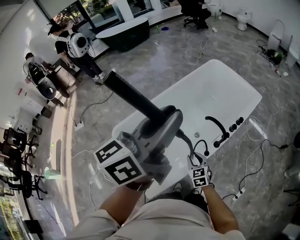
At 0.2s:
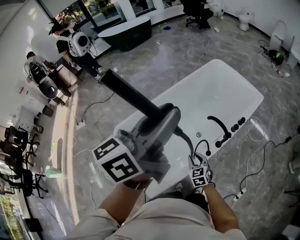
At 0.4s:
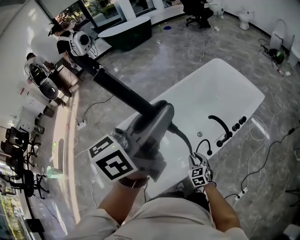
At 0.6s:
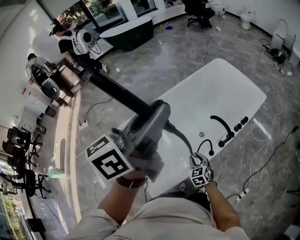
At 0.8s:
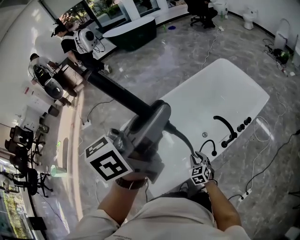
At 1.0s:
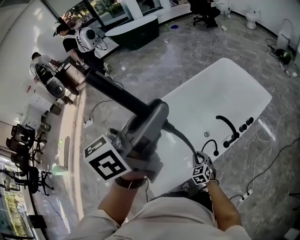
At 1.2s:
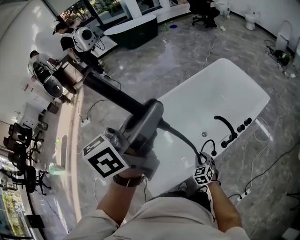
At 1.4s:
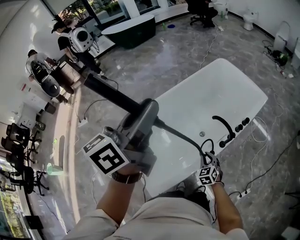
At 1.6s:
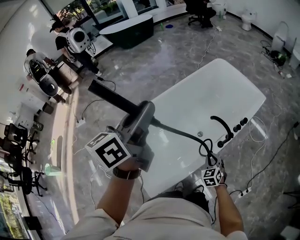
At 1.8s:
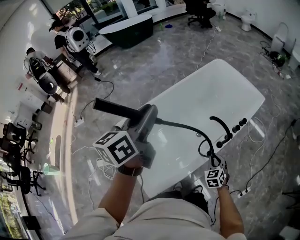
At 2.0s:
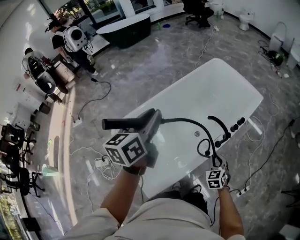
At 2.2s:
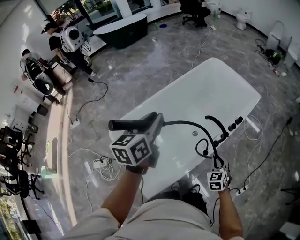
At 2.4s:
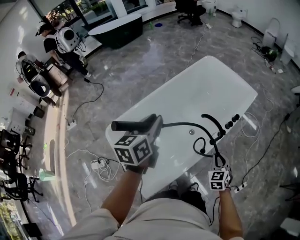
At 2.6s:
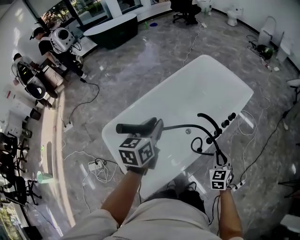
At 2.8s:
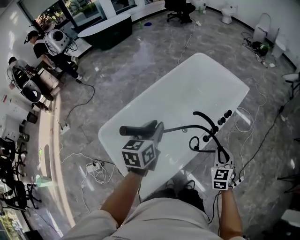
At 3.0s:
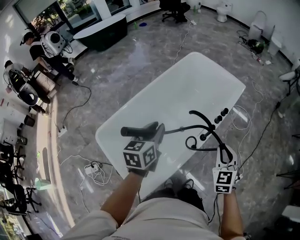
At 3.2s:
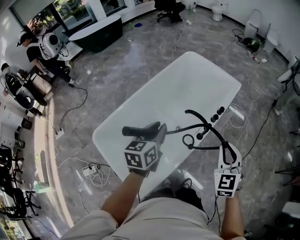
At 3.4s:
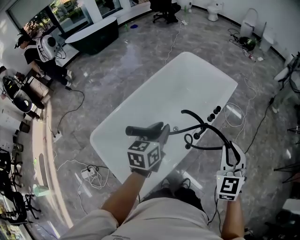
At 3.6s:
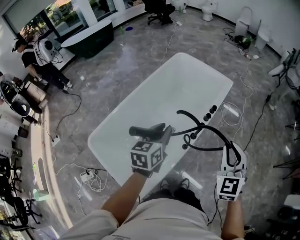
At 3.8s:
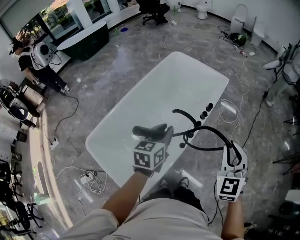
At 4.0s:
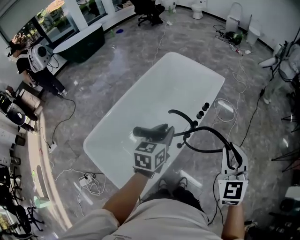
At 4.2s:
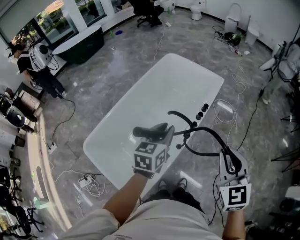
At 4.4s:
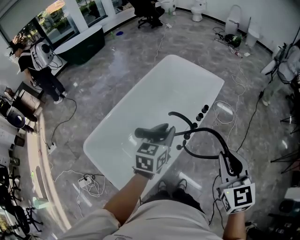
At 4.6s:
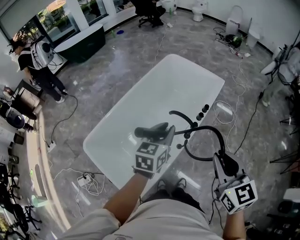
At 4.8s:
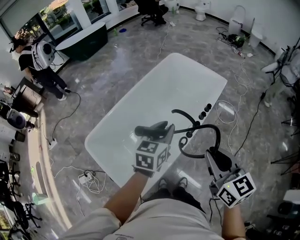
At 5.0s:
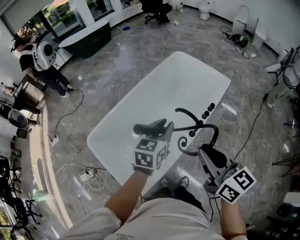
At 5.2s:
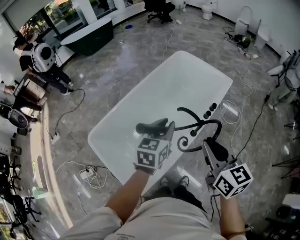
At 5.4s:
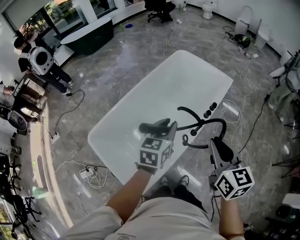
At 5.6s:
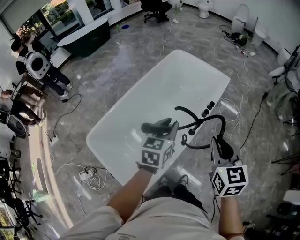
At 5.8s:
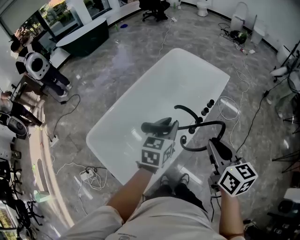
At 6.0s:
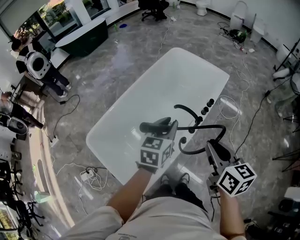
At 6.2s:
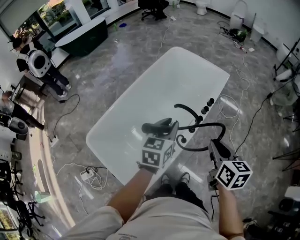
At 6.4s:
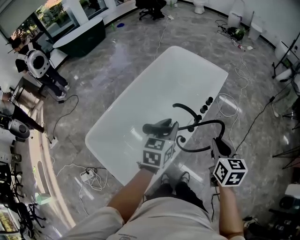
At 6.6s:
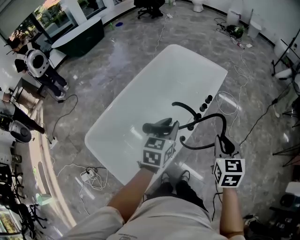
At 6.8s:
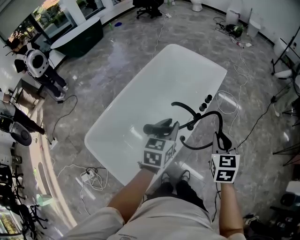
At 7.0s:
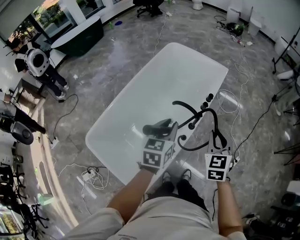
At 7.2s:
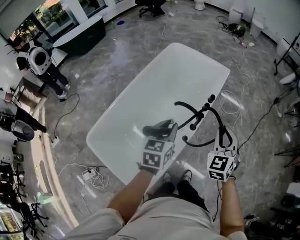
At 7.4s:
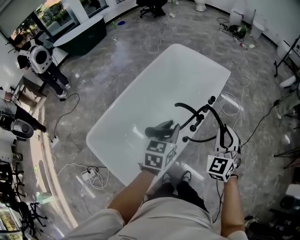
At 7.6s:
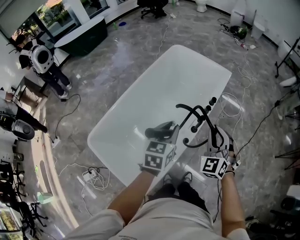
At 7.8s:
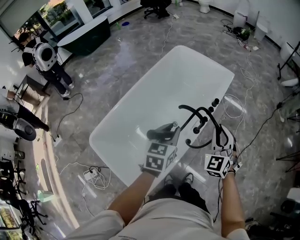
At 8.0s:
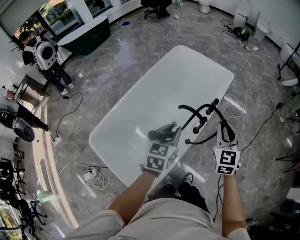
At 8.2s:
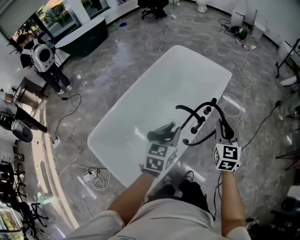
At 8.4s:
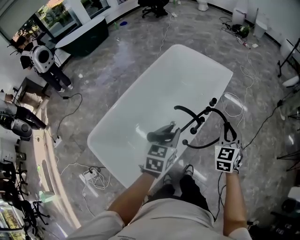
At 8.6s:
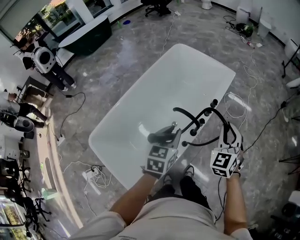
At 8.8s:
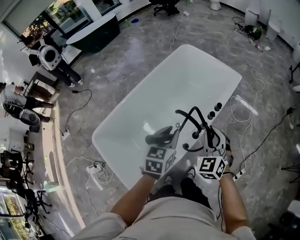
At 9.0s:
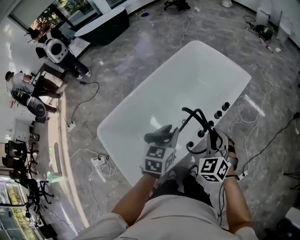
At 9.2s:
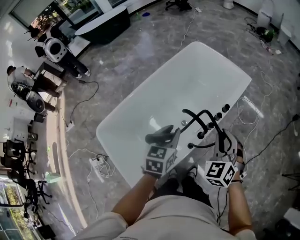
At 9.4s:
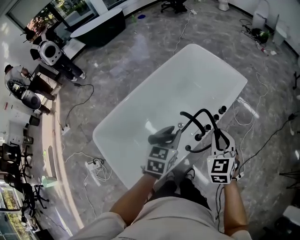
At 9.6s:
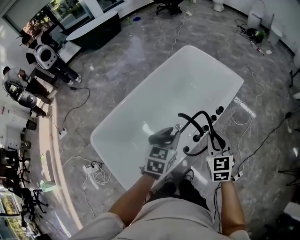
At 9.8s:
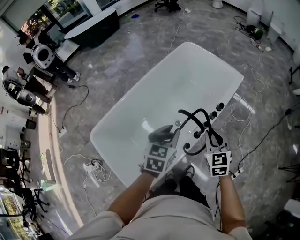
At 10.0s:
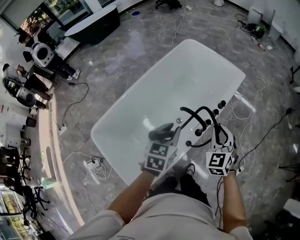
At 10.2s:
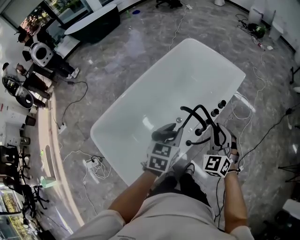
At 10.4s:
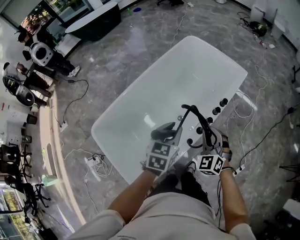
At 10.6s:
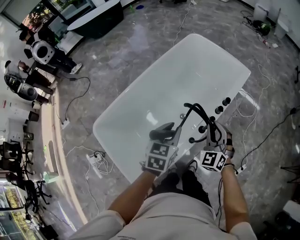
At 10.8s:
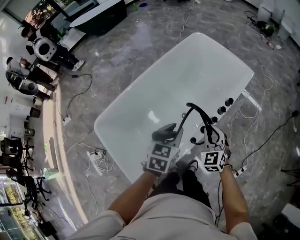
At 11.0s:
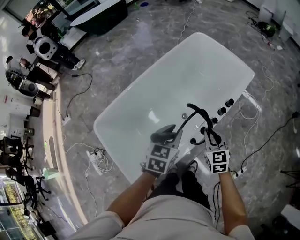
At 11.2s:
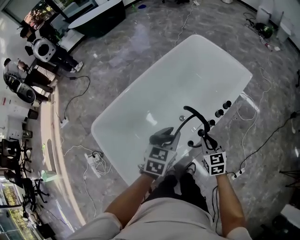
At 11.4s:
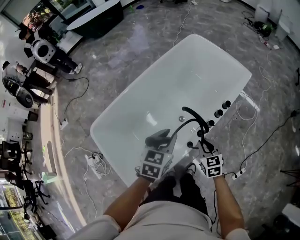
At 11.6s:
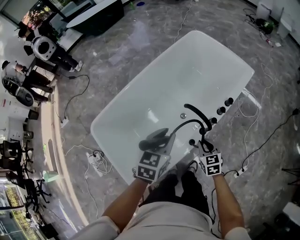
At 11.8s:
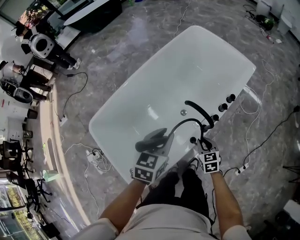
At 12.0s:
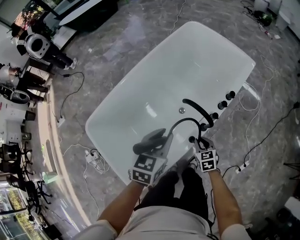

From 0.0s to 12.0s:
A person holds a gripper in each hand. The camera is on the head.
From 0.0s to 1.6s: The right gripper moves to the right, some 5 cm, while the left gripper shifts some 10 cm to the left and downward.
From 1.6s to 3.0s: The right gripper is displaced upward and to the right by about 20 cm, and turns by roughly 20 degrees, while the left gripper heads downward and to the right, covering approximately 20 cm, and rotates approximately 30 degrees.
From 3.0s to 4.4s: The left gripper moves to the right, roughly 15 cm; the right gripper moves upward and backward, about 15 cm.
From 4.4s to 6.0s: The right gripper heads to the left, covering roughly 5 cm, and turns by about 30 degrees.
From 6.0s to 7.6s: The right gripper goes about 10 cm downward and forward, and rotates around the line of its fingers by some 60 degrees, counterclockwise from behind.
From 7.6s to 9.0s: The right gripper shifts approximately 5 cm forward, and travels to the right and back again, about 10 cm each way.
From 9.0s to 10.4s: The right gripper goes some 5 cm downward.
From 10.4s to 12.0s: The right gripper goes about 25 cm downward, and changes its angle by some 50 degrees. Meanwhile the left gripper shifts approximately 5 cm downward.

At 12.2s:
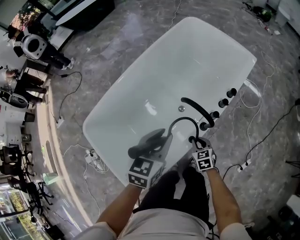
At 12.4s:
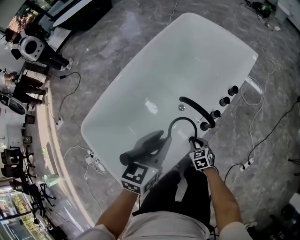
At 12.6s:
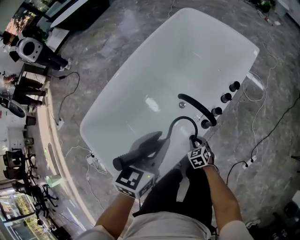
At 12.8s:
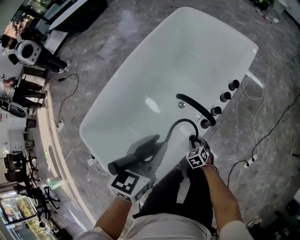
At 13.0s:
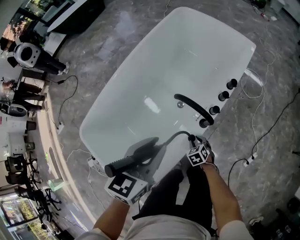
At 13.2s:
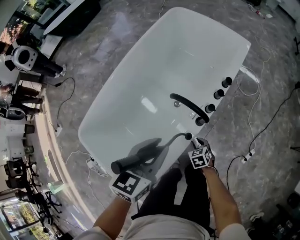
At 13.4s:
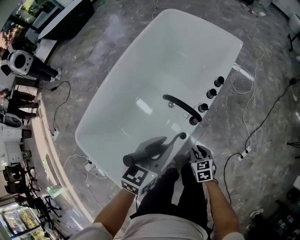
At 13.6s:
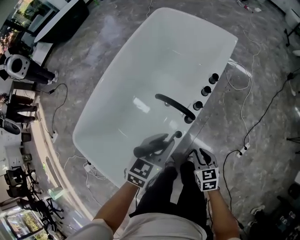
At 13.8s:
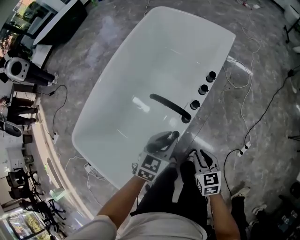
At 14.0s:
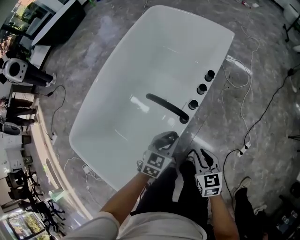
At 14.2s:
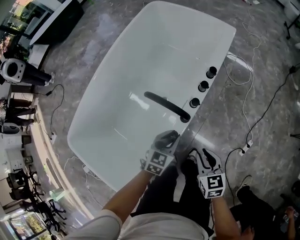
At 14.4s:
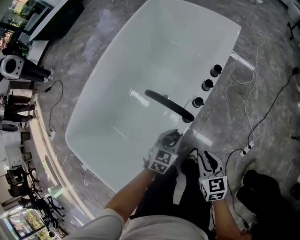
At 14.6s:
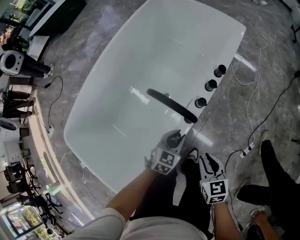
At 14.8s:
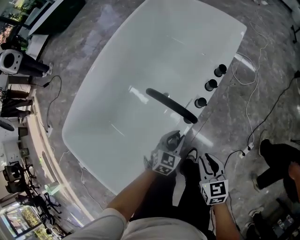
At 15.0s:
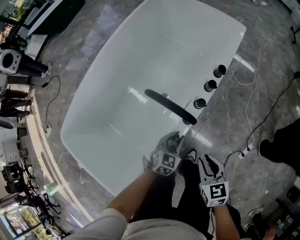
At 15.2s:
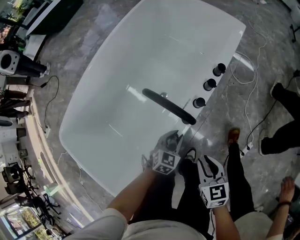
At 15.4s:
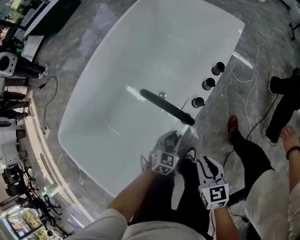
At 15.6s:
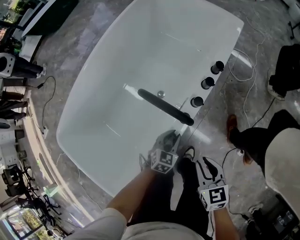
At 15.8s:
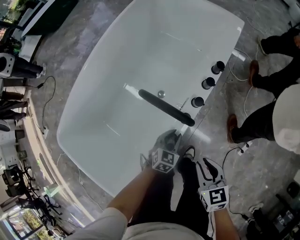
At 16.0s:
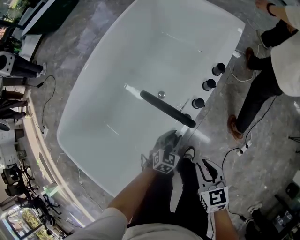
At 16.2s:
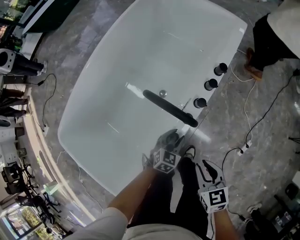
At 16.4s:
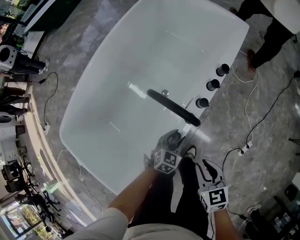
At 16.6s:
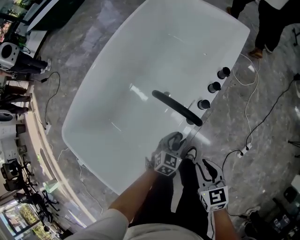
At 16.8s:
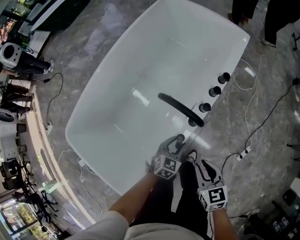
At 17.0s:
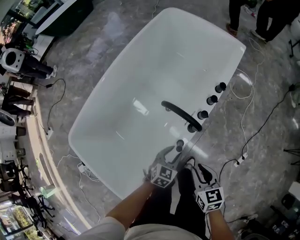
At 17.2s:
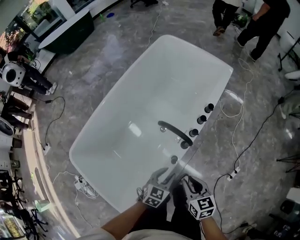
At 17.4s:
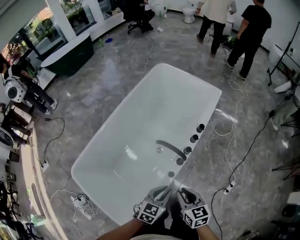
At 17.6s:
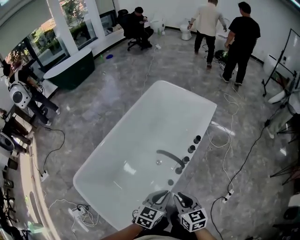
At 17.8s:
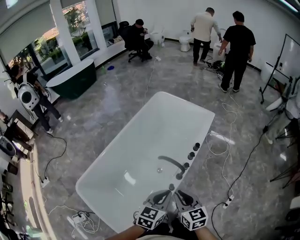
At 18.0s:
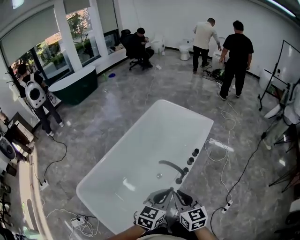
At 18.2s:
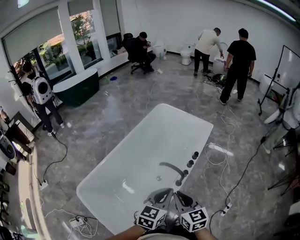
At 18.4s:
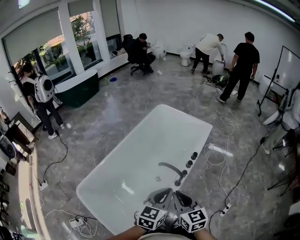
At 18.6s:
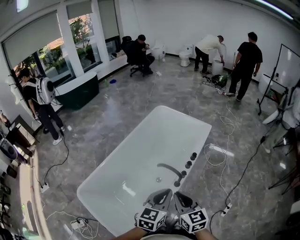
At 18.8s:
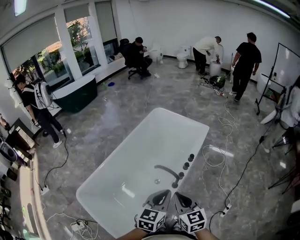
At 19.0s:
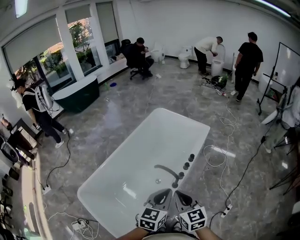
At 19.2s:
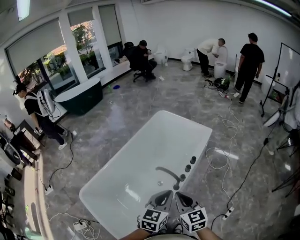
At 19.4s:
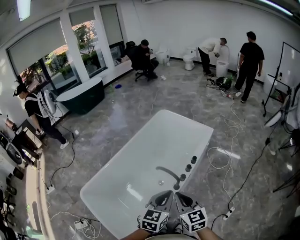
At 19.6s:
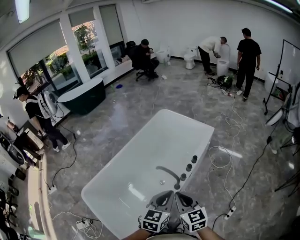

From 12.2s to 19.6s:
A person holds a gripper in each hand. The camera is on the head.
From 12.2s to 13.6s: The right gripper moves to the right, backward and upward, approximately 15 cm; the left gripper goes roughly 10 cm to the right, and changes its angle by approximately 20 degrees.
From 13.6s to 15.2s: The left gripper moves downward, some 30 cm.
From 15.2s to 16.6s: The grippers make only small movements.
From 16.6s to 18.2s: The left gripper shifts about 40 cm upward, swivels about 30 degrees, and closes its fingers; the right gripper heads upward, covering some 30 cm, and turns by approximately 20 degrees.
From 18.2s to 19.6s: The grippers both shift to the right by approximately 5 cm.

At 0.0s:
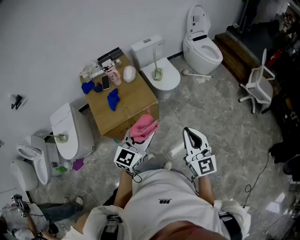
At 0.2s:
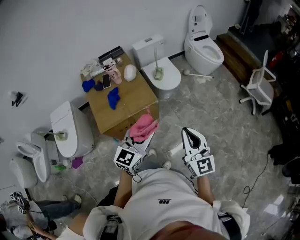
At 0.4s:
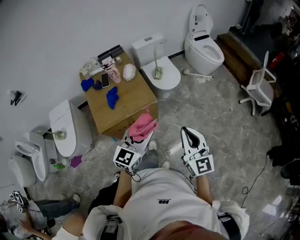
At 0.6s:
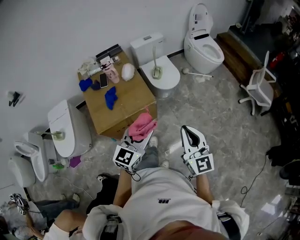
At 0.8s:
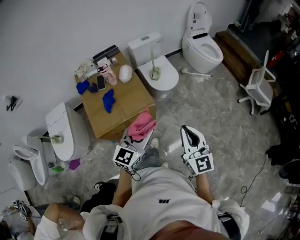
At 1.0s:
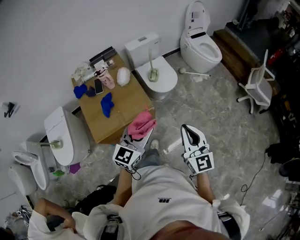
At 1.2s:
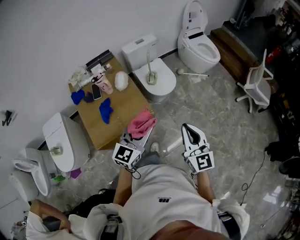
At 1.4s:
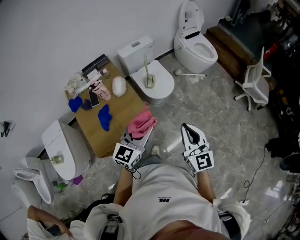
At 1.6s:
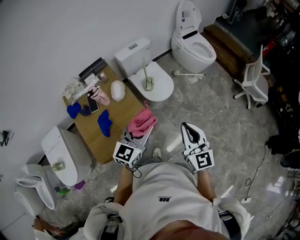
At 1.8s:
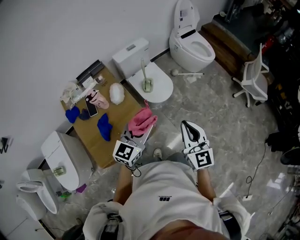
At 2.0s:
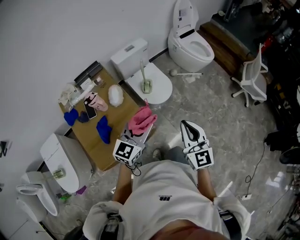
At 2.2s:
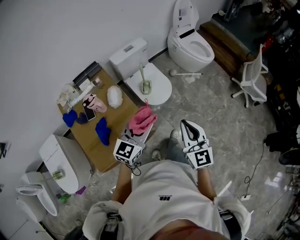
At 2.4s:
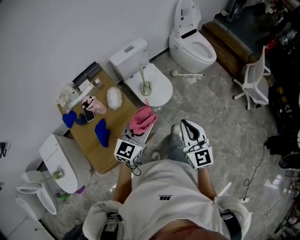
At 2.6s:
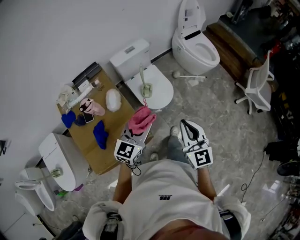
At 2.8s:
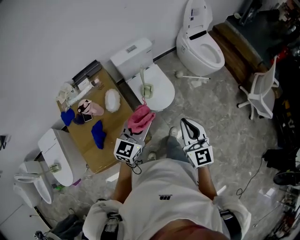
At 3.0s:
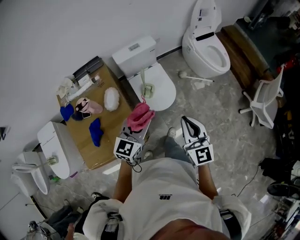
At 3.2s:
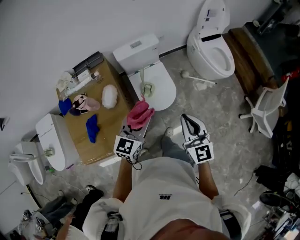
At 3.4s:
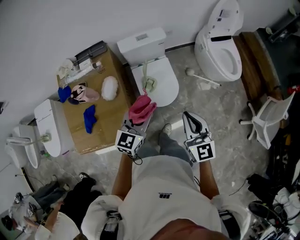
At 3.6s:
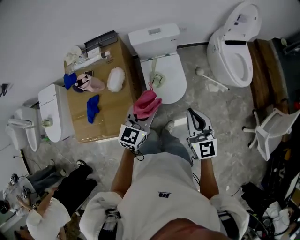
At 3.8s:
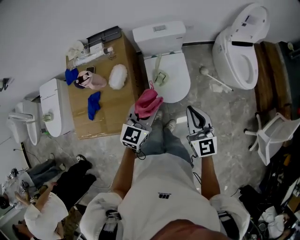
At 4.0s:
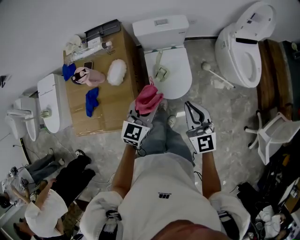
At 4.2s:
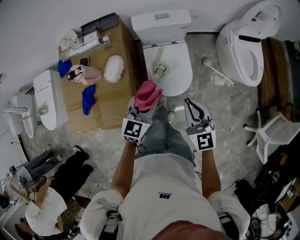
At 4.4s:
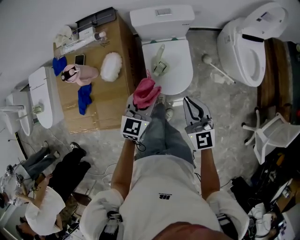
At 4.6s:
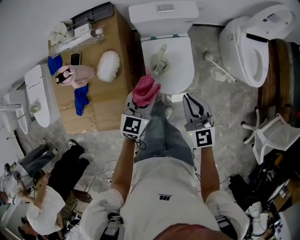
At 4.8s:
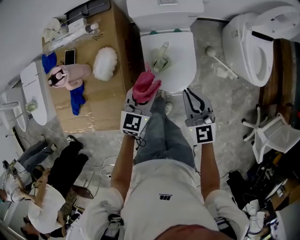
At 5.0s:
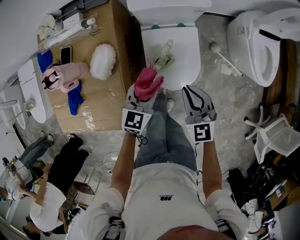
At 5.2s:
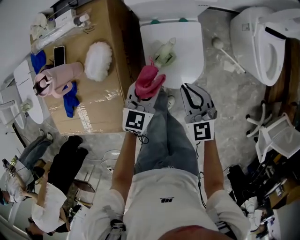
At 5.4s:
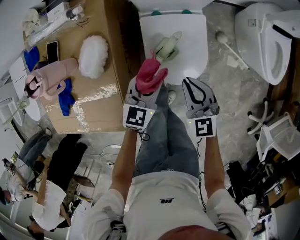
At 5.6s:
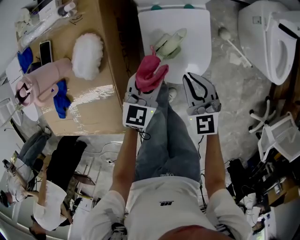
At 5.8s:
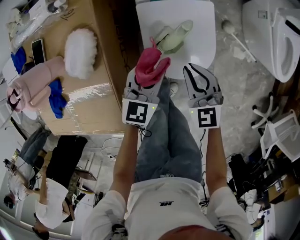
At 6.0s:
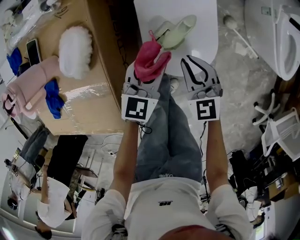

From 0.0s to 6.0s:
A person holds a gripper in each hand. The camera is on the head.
From 0.0s to 1.6s: The two grippers go some 25 cm forward.
From 1.6s to 3.0s: Both grippers travel together forward, approximately 25 cm.
From 3.0s to 4.4s: The left gripper moves downward and forward, about 20 cm, and rotates about 20 degrees, while the right gripper moves forward and downward, about 25 cm, and changes its angle by some 30 degrees.
From 4.4s to 6.0s: The two grippers go approximately 30 cm downward. The right gripper rotates about 20 degrees.
